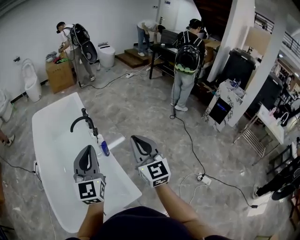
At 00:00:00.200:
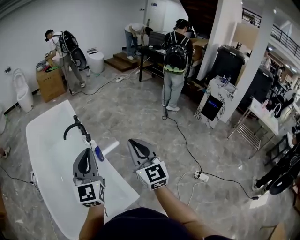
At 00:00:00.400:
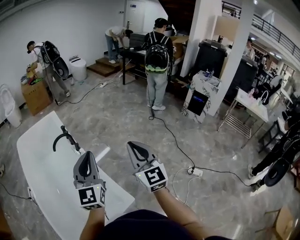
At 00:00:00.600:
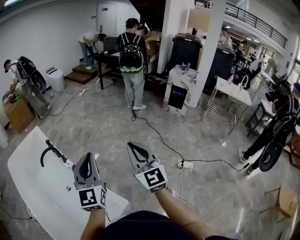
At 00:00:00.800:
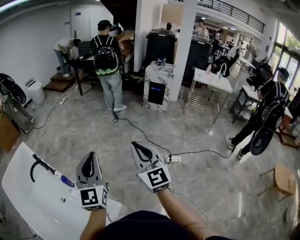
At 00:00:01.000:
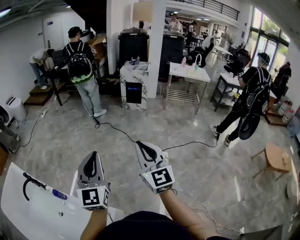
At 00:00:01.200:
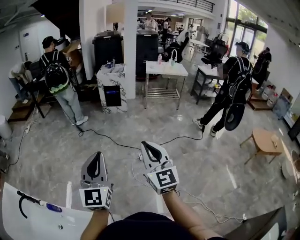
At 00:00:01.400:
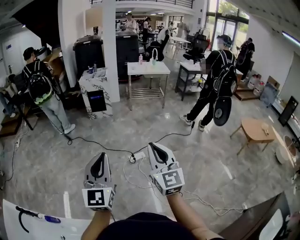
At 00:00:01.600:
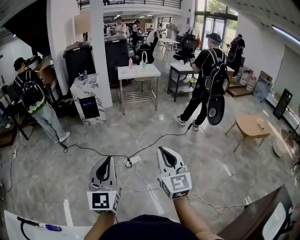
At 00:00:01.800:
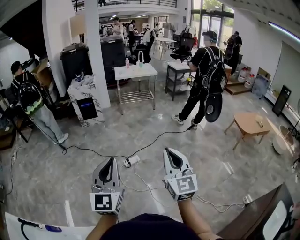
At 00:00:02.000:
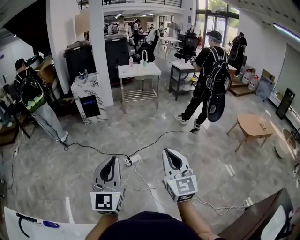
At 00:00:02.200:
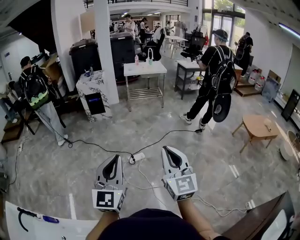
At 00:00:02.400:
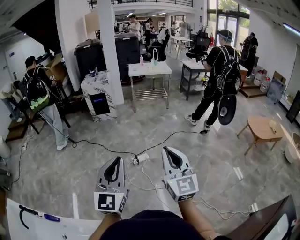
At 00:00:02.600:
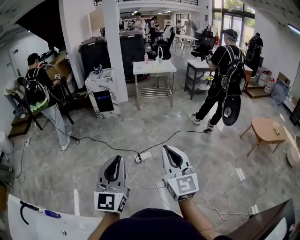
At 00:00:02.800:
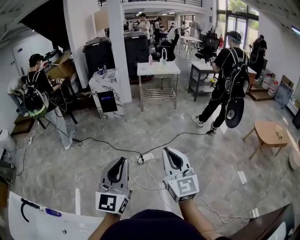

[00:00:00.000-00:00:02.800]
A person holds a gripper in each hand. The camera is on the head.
00:00:00.000 to 00:00:01.400: Both grippers are carried roughly 50 cm. The right gripper turns by about 70 degrees. The left gripper turns by approximately 70 degrees.
00:00:01.400 to 00:00:02.800: Both grippers travel together to the right, about 10 cm.

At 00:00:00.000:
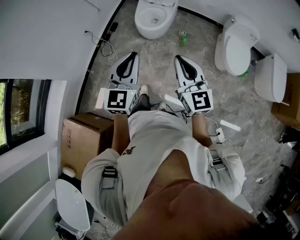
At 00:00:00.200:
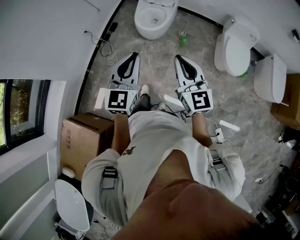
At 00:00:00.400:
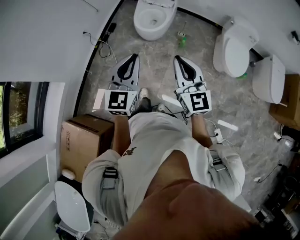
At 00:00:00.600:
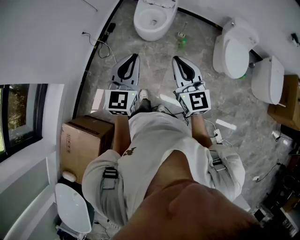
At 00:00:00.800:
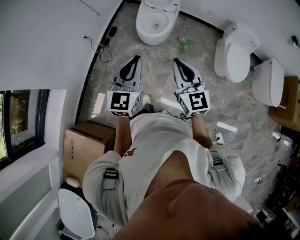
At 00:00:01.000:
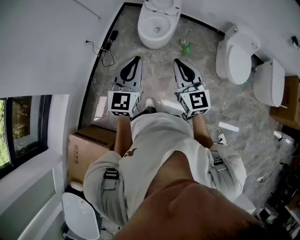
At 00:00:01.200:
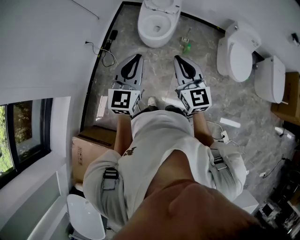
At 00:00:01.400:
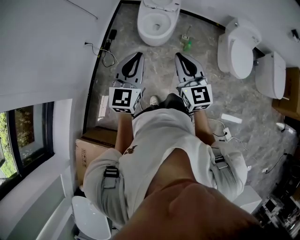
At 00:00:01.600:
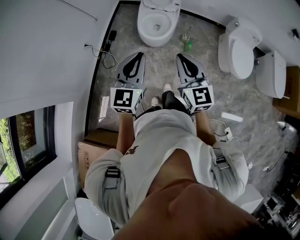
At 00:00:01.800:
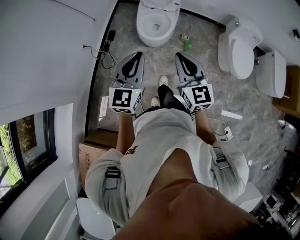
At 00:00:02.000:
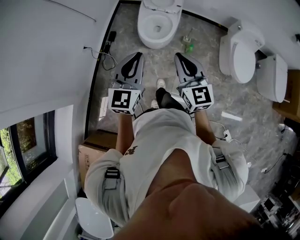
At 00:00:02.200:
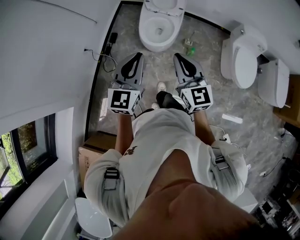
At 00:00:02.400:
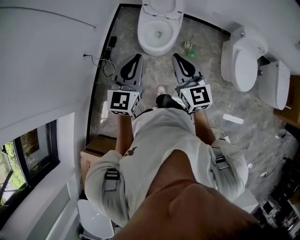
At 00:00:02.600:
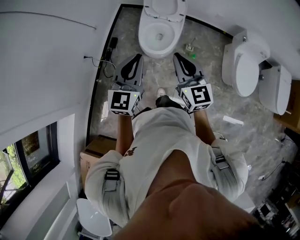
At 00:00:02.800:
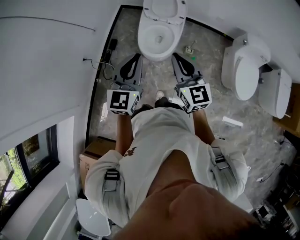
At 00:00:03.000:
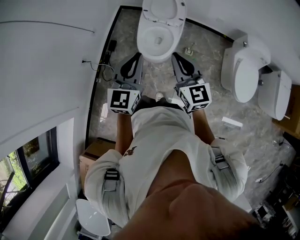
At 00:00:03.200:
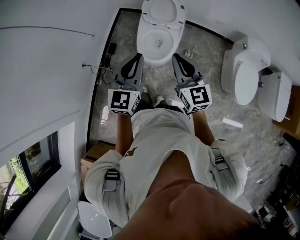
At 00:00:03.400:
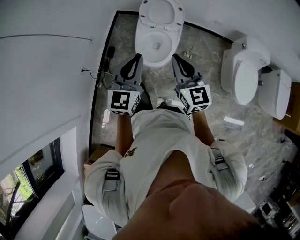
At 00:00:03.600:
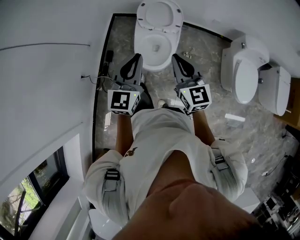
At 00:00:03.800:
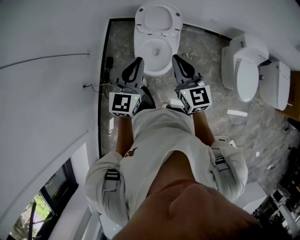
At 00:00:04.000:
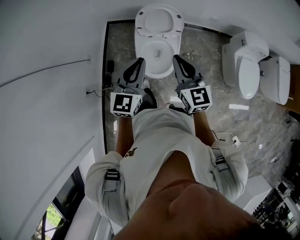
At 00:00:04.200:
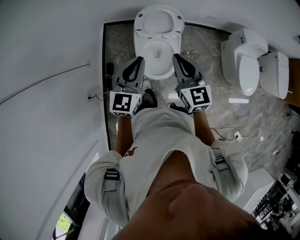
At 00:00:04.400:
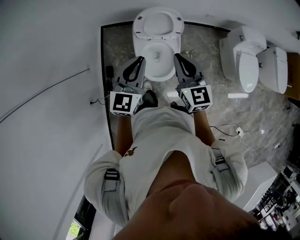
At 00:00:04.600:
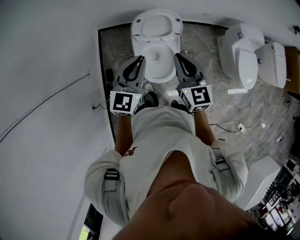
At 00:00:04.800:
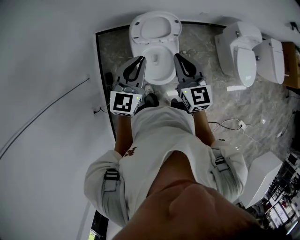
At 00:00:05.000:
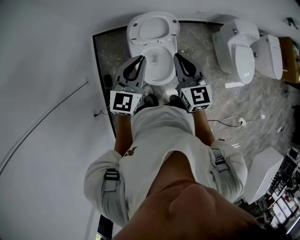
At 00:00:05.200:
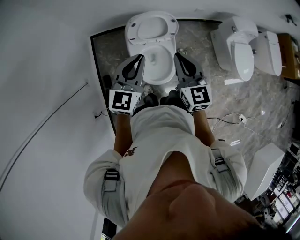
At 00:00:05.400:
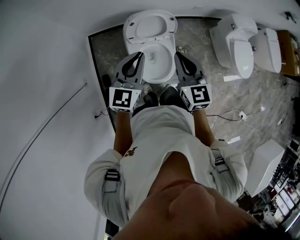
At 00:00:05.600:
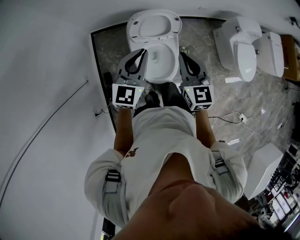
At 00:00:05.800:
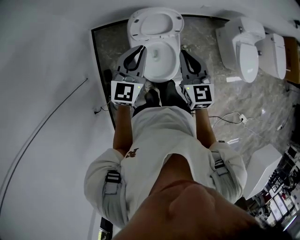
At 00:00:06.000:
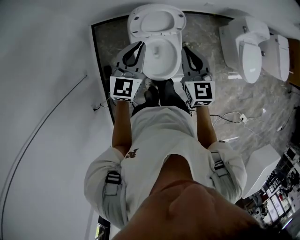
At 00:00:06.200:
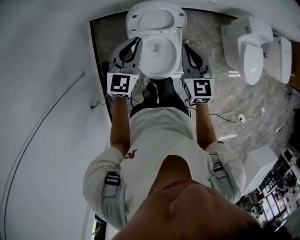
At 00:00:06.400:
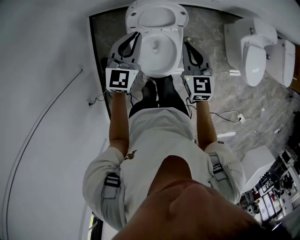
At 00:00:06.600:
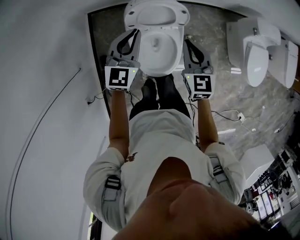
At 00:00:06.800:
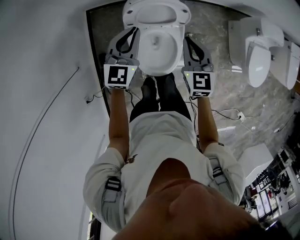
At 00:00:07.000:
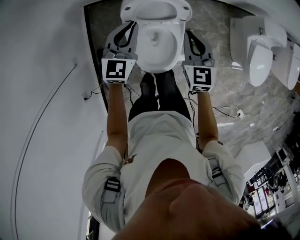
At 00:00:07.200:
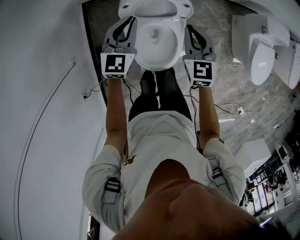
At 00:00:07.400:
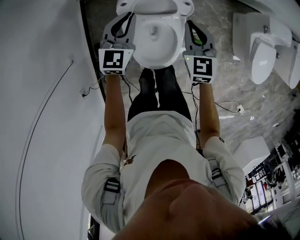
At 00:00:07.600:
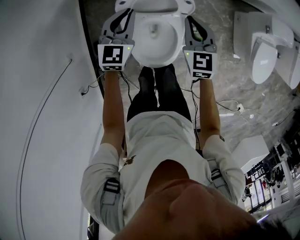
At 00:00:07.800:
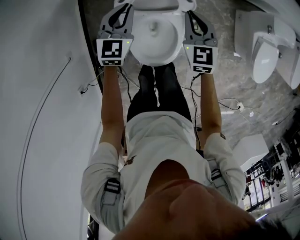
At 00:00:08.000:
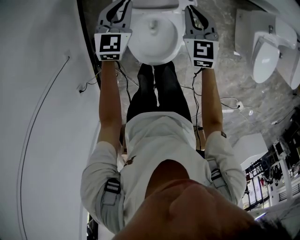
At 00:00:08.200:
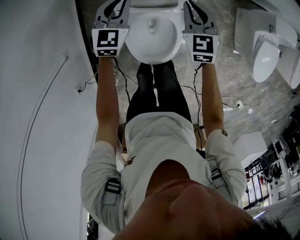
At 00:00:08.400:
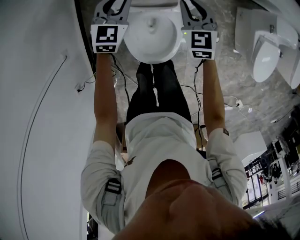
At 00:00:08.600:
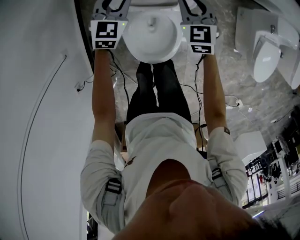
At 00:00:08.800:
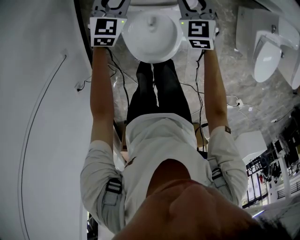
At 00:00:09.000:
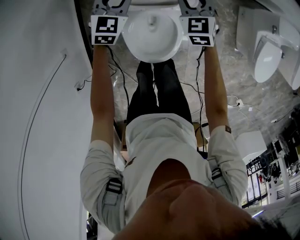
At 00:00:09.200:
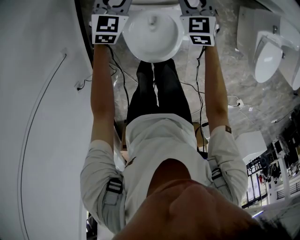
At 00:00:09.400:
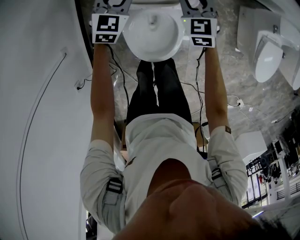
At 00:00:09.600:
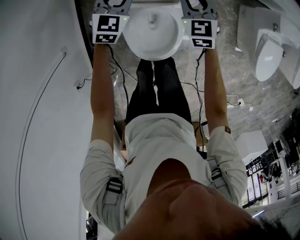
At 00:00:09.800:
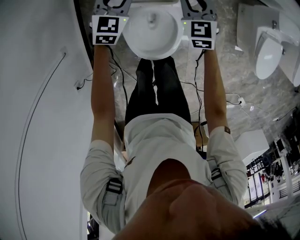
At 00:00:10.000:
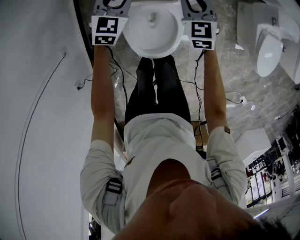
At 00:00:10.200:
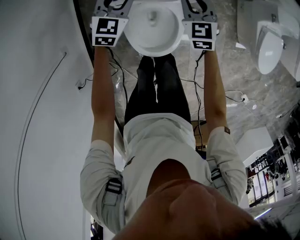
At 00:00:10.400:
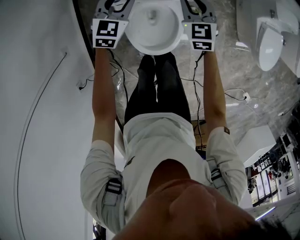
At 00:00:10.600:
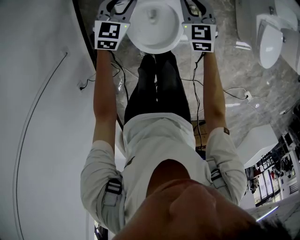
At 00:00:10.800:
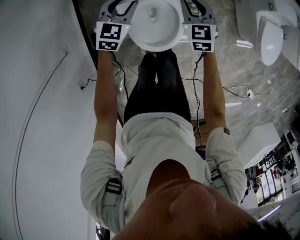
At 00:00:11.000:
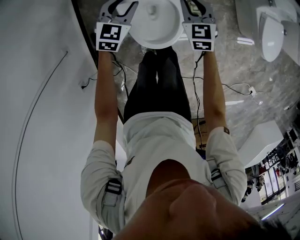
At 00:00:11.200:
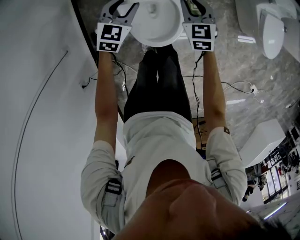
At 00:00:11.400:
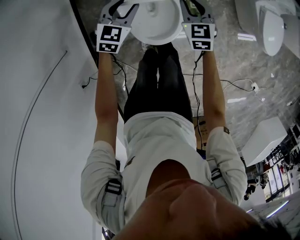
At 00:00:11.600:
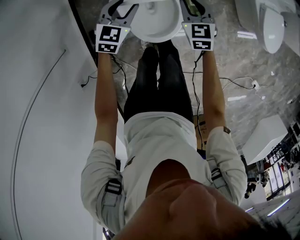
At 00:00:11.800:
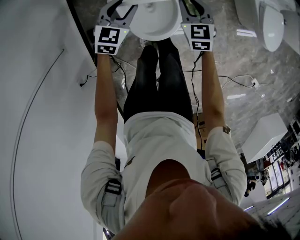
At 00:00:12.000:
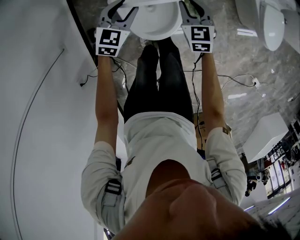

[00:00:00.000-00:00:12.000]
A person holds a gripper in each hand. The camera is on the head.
00:00:00.000 to 00:00:01.600: Both grippers travel together forward and to the left, about 20 cm.
00:00:01.600 to 00:00:03.000: The two grippers go roughly 25 cm forward.
00:00:03.000 to 00:00:04.400: Both grippers move forward, some 25 cm. The right gripper changes its angle by approximately 20 degrees. Meanwhile the left gripper swivels roughly 20 degrees.
00:00:04.400 to 00:00:06.000: Both grippers move forward and downward, roughly 15 cm.
00:00:06.000 to 00:00:07.600: The grippers both shift downward and forward by some 25 cm.
00:00:07.600 to 00:00:09.000: The left gripper is displaced downward and forward by about 10 cm, and opens its fingers, while the right gripper shifts approximately 10 cm forward and downward, and opens its fingers.
00:00:09.000 to 00:00:10.400: The grippers both shift backward by some 10 cm.
00:00:10.400 to 00:00:12.000: Both grippers travel together backward, approximately 15 cm.

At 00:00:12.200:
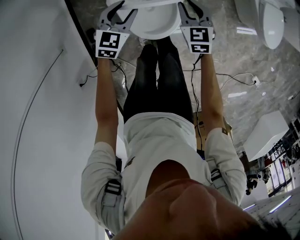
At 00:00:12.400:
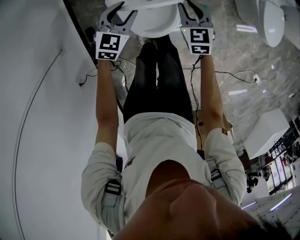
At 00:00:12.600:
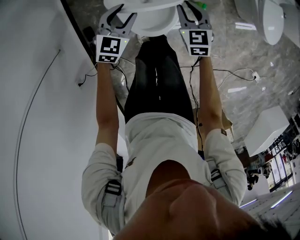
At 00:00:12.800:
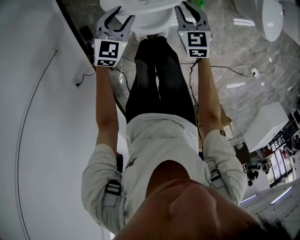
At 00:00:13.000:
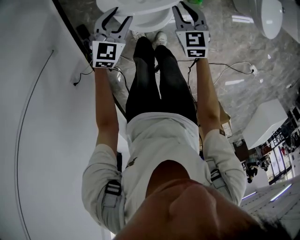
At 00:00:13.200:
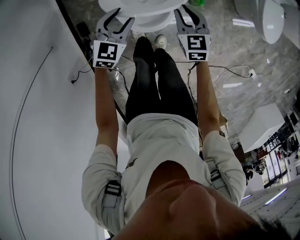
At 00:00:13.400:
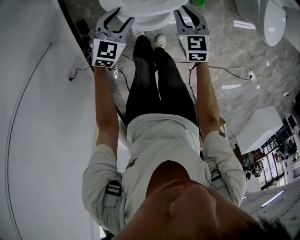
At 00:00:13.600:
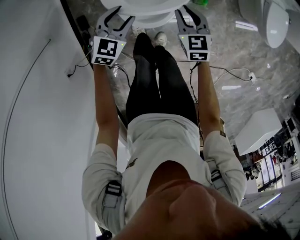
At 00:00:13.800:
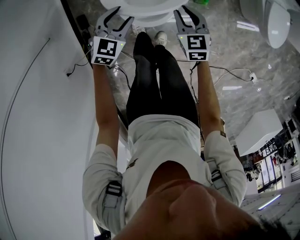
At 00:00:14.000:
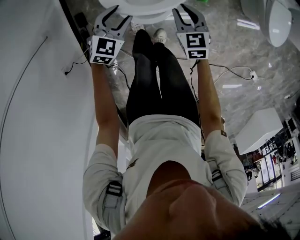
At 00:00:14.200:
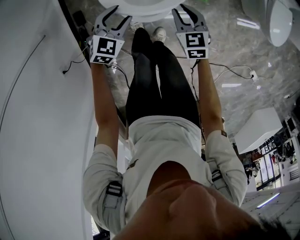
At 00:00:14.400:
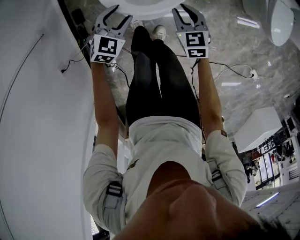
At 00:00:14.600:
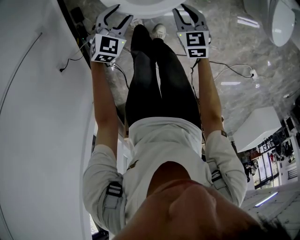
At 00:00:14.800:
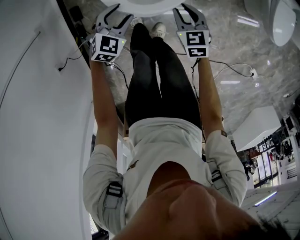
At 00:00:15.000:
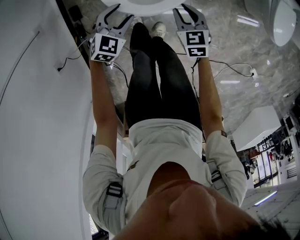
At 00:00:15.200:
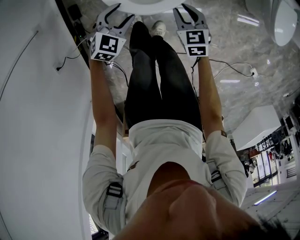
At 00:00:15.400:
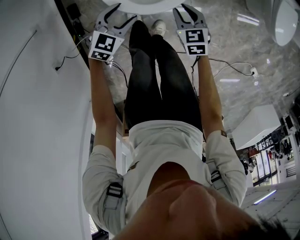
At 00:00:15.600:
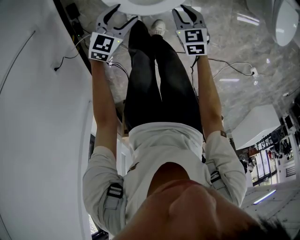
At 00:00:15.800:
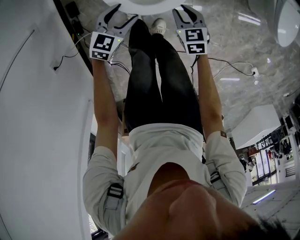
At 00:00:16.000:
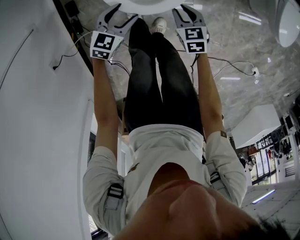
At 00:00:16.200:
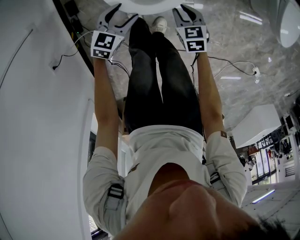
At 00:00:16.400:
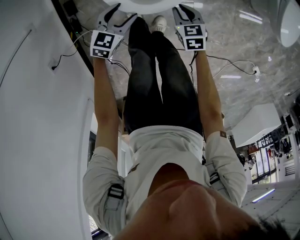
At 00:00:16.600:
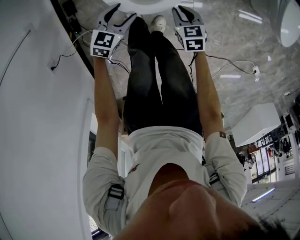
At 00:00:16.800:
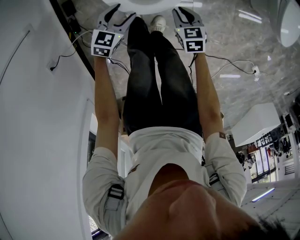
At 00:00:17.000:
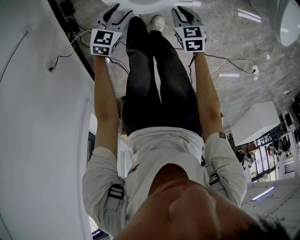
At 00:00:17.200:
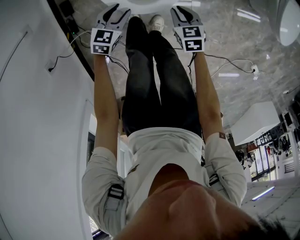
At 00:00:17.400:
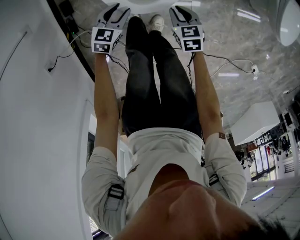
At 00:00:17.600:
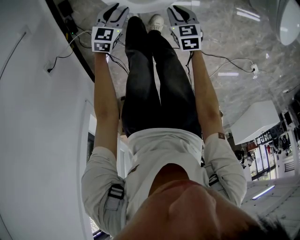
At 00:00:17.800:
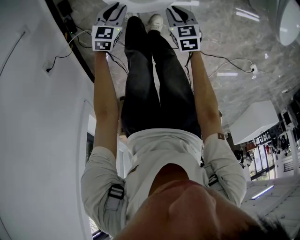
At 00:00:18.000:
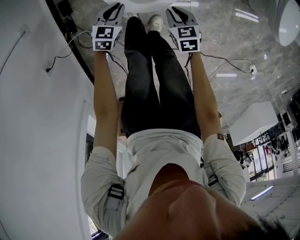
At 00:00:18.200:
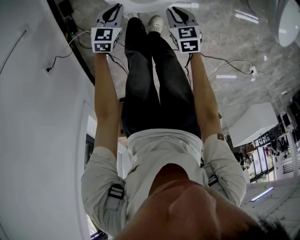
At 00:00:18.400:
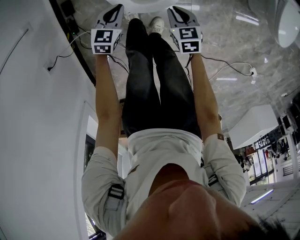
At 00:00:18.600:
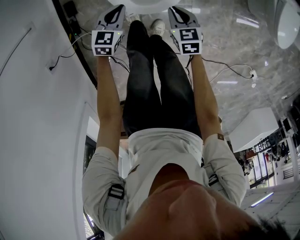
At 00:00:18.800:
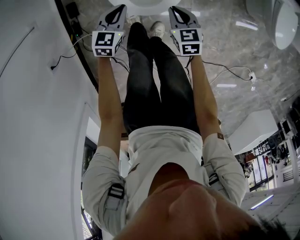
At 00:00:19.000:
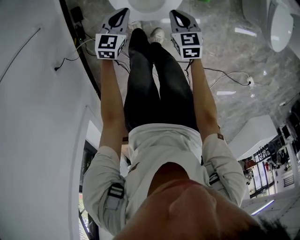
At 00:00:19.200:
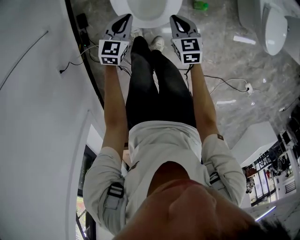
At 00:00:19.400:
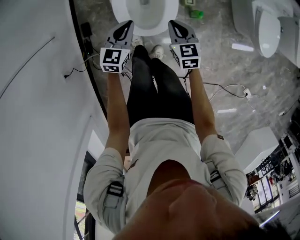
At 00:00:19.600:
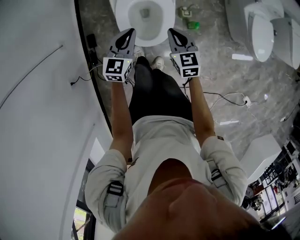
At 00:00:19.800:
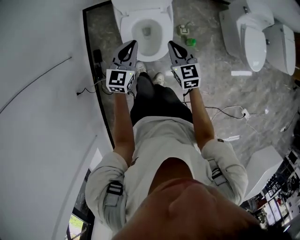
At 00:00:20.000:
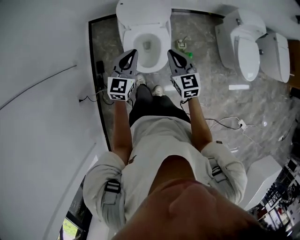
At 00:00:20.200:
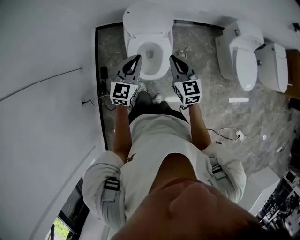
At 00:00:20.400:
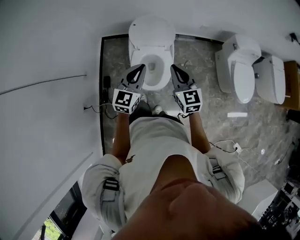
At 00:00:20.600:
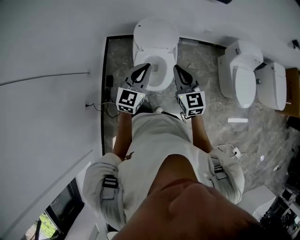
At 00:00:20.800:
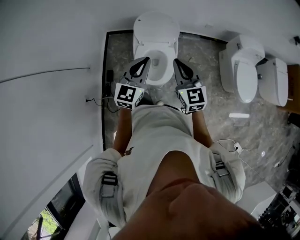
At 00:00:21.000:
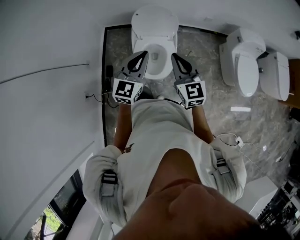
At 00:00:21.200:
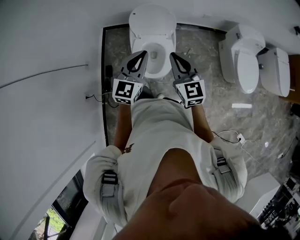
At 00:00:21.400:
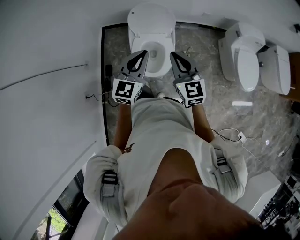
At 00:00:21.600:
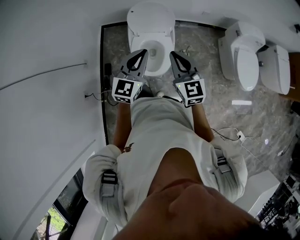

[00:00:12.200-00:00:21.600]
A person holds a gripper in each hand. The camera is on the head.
00:00:12.200 to 00:00:13.800: The two grippers go some 10 cm backward and downward.
00:00:13.800 to 00:00:15.400: The two grippers go roughly 10 cm downward and backward.
00:00:15.400 to 00:00:17.000: The two grippers go some 10 cm downward.
00:00:17.000 to 00:00:18.400: The left gripper closes.
00:00:18.400 to 00:00:20.000: The grippers both shift upward by some 40 cm. The right gripper angles its fingers upward, by roughly 30 degrees. Meanwhile the left gripper turns by about 30 degrees.
00:00:20.000 to 00:00:21.600: Both grippers travel together upward, approximately 15 cm.
